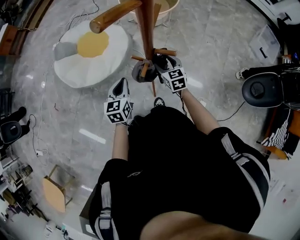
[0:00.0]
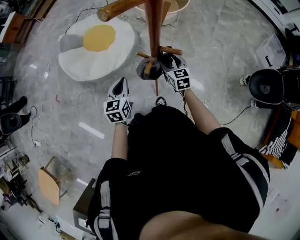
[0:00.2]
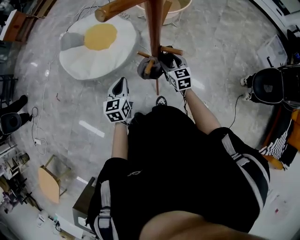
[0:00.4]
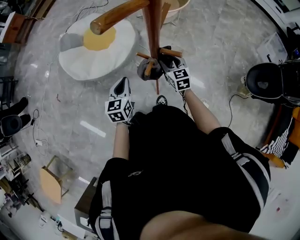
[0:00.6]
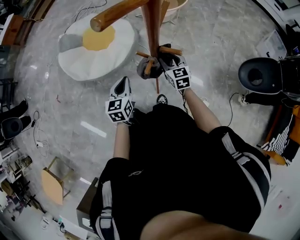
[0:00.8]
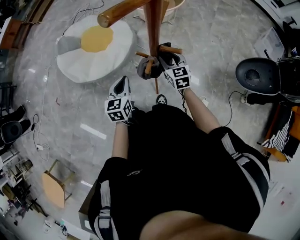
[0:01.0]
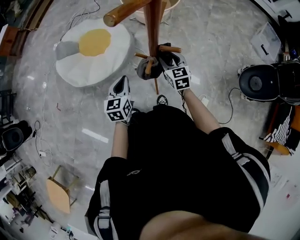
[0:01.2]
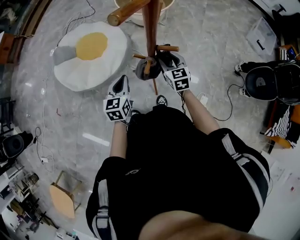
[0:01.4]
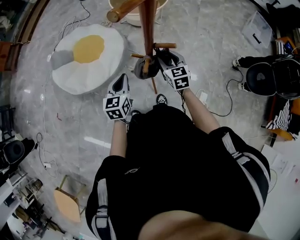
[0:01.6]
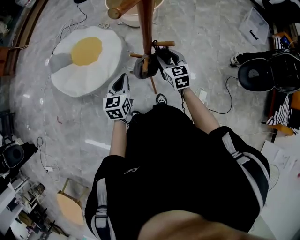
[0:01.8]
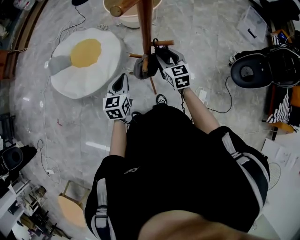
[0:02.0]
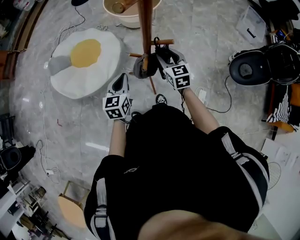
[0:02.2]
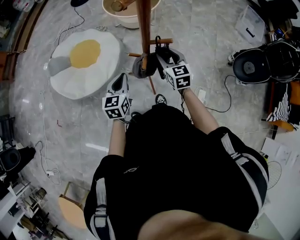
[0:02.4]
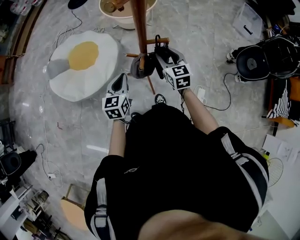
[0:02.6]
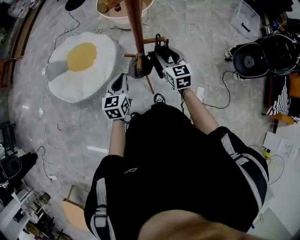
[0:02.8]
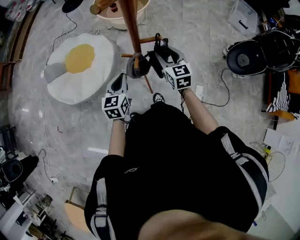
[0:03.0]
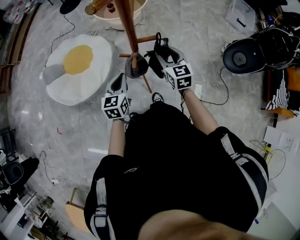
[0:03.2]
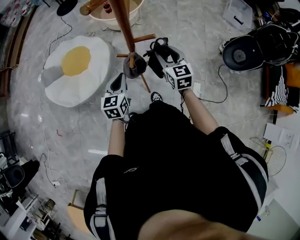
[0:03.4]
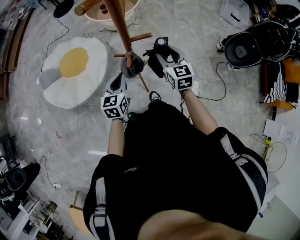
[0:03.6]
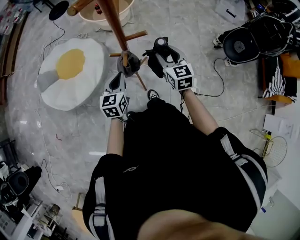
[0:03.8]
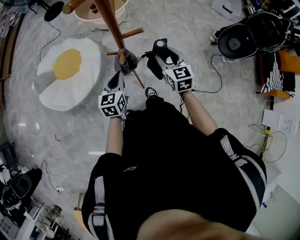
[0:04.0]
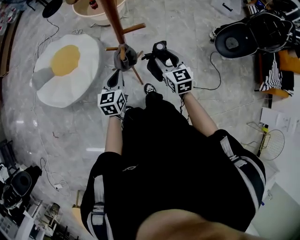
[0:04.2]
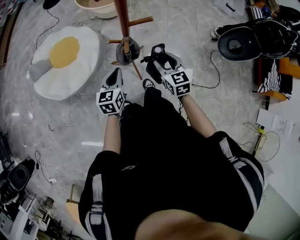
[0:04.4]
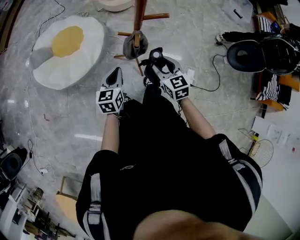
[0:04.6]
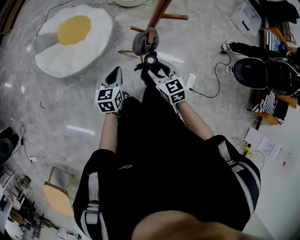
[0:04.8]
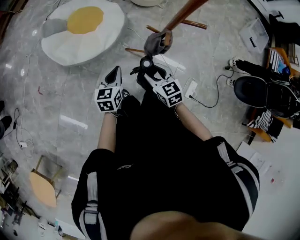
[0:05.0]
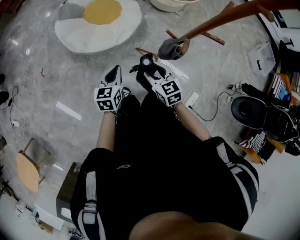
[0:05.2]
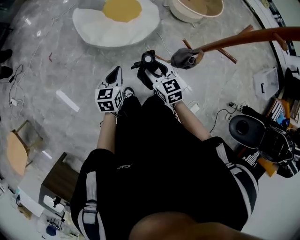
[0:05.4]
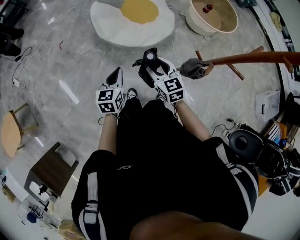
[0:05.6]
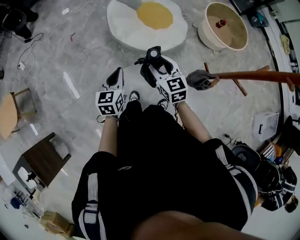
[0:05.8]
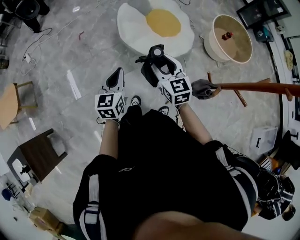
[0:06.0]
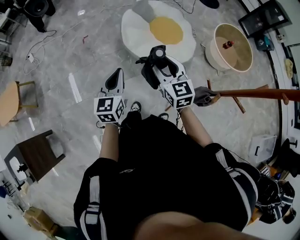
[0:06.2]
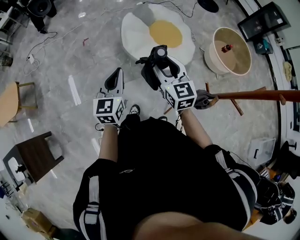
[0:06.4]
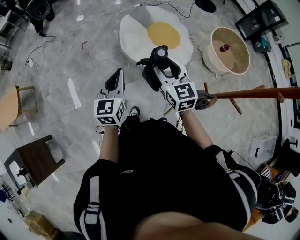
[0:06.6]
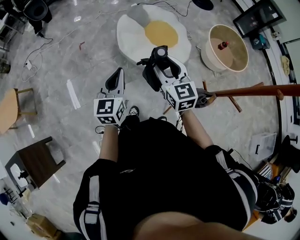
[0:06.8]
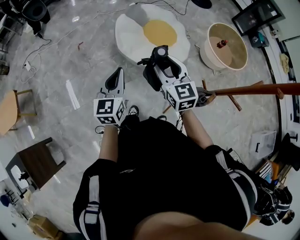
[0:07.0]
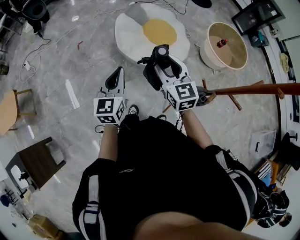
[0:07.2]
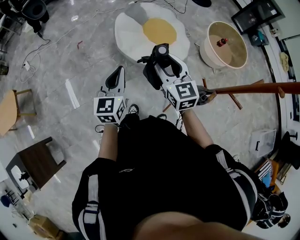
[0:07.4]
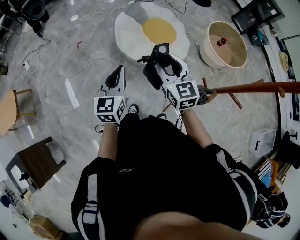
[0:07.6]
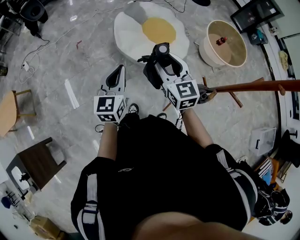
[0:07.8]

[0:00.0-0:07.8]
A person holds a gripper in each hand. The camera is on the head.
0:00.0 to 0:01.6: The right gripper travels upward by approximately 5 cm.
0:01.6 to 0:03.2: The right gripper goes some 5 cm upward.
0:03.2 to 0:04.6: The right gripper goes roughly 15 cm backward, while the left gripper travels backward by about 10 cm.
0:04.6 to 0:06.2: The left gripper changes place by about 30 cm, and turns by about 60 degrees, while the right gripper ends up about 35 cm from where it was, and swivels some 60 degrees.
0:06.2 to 0:07.8: The grippers make only small movements.

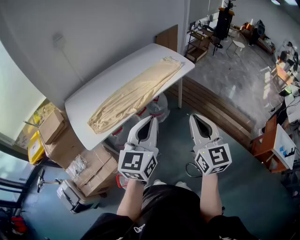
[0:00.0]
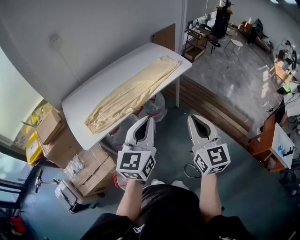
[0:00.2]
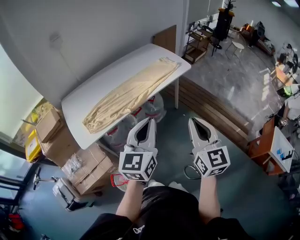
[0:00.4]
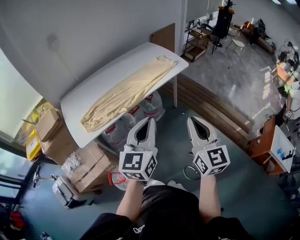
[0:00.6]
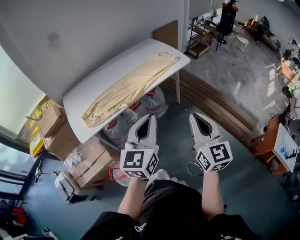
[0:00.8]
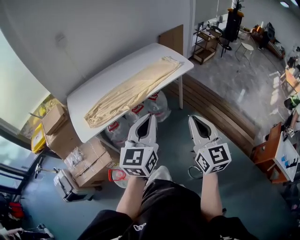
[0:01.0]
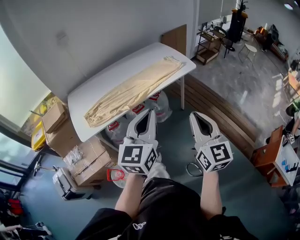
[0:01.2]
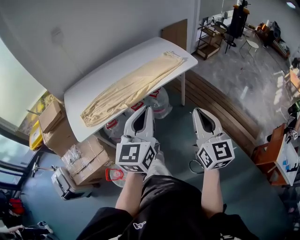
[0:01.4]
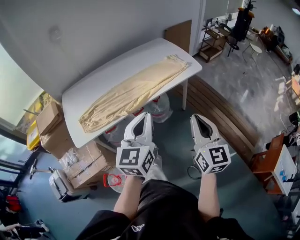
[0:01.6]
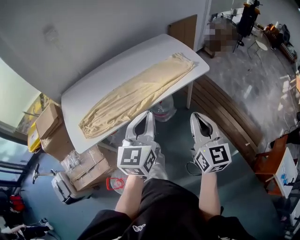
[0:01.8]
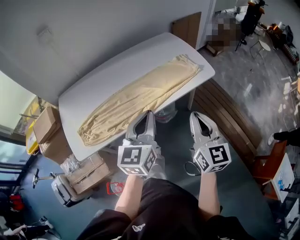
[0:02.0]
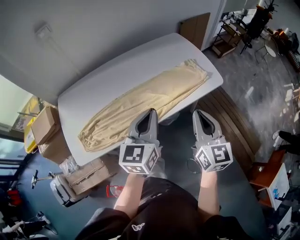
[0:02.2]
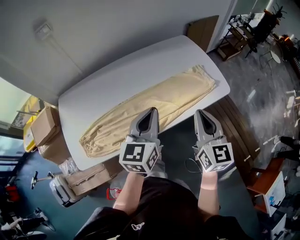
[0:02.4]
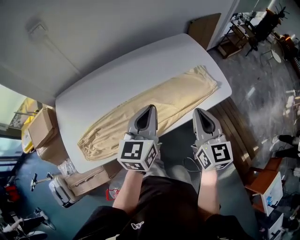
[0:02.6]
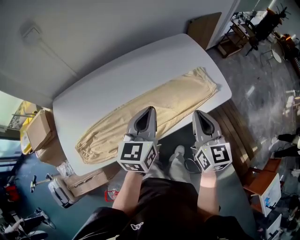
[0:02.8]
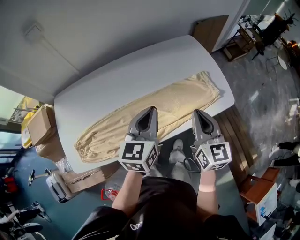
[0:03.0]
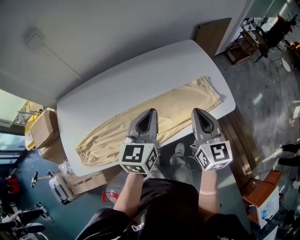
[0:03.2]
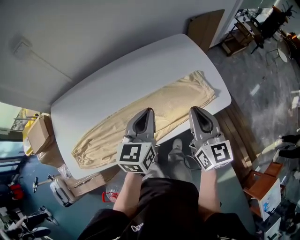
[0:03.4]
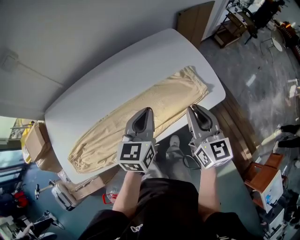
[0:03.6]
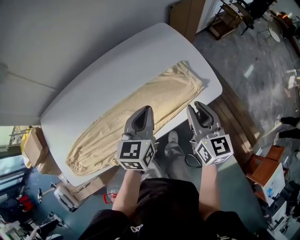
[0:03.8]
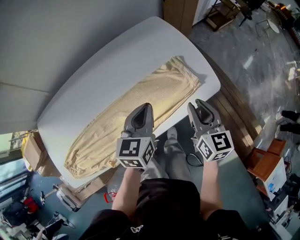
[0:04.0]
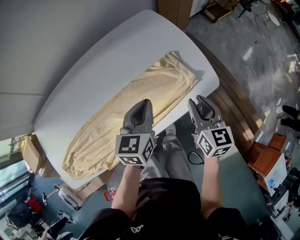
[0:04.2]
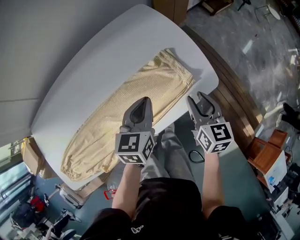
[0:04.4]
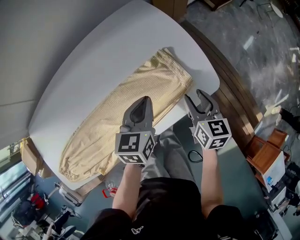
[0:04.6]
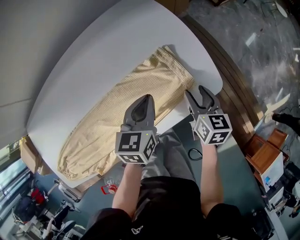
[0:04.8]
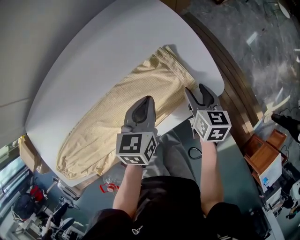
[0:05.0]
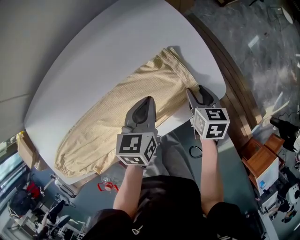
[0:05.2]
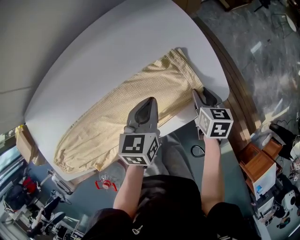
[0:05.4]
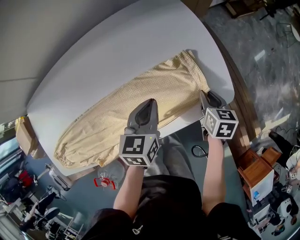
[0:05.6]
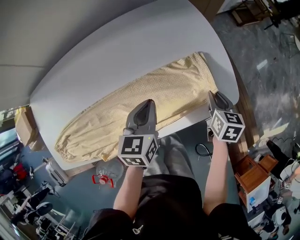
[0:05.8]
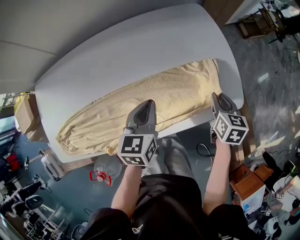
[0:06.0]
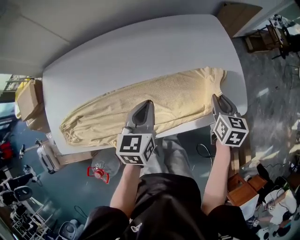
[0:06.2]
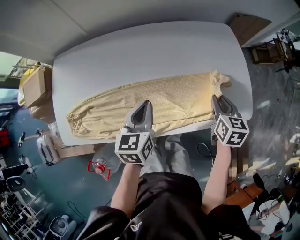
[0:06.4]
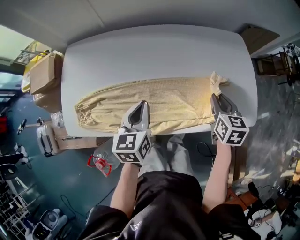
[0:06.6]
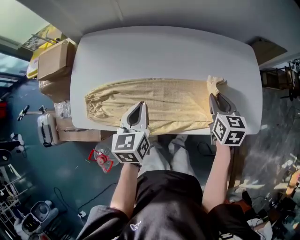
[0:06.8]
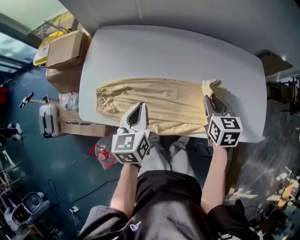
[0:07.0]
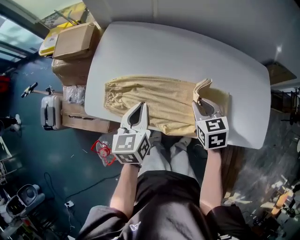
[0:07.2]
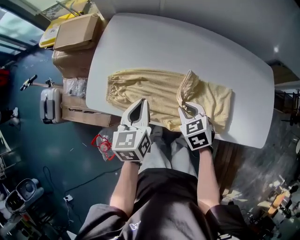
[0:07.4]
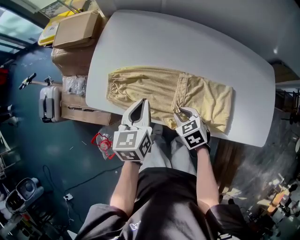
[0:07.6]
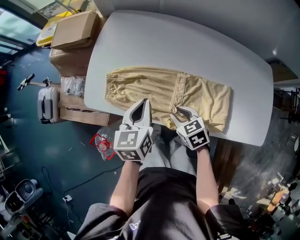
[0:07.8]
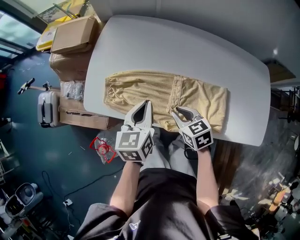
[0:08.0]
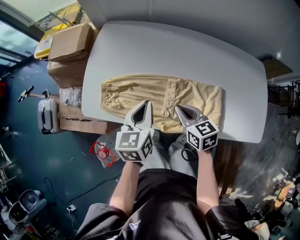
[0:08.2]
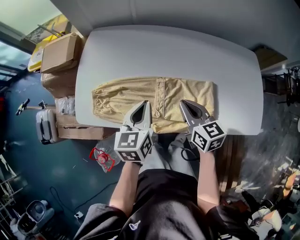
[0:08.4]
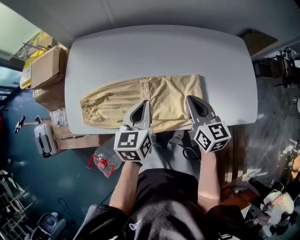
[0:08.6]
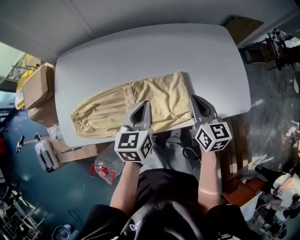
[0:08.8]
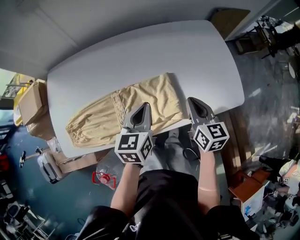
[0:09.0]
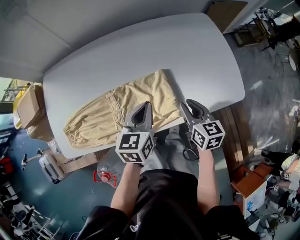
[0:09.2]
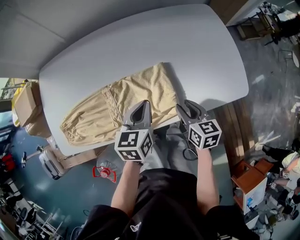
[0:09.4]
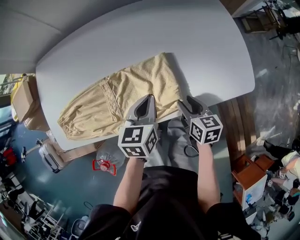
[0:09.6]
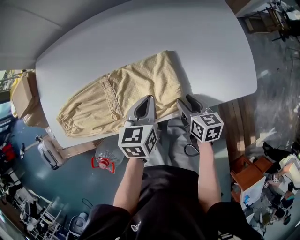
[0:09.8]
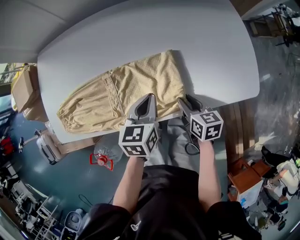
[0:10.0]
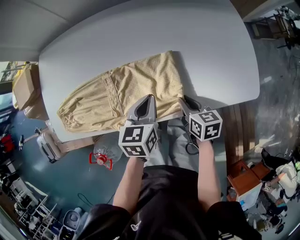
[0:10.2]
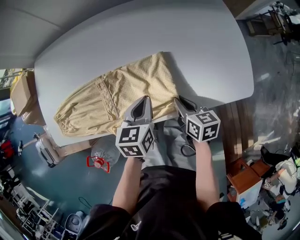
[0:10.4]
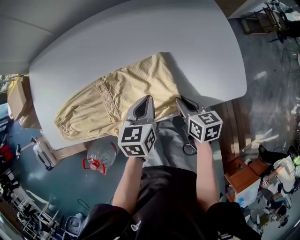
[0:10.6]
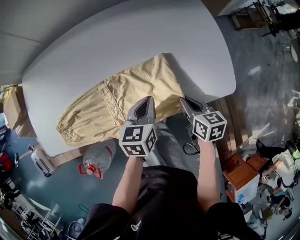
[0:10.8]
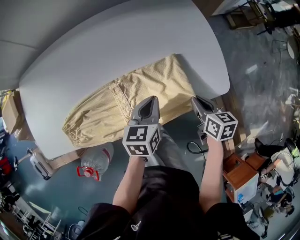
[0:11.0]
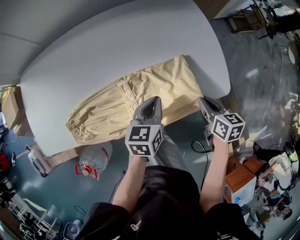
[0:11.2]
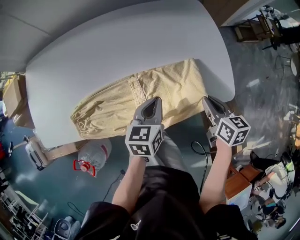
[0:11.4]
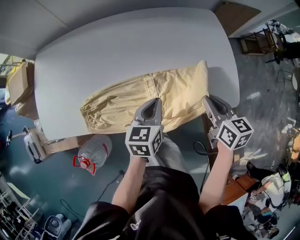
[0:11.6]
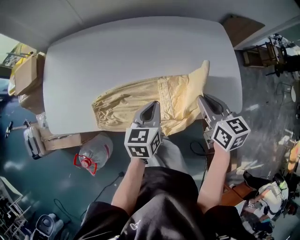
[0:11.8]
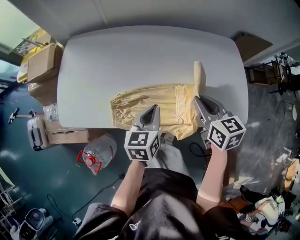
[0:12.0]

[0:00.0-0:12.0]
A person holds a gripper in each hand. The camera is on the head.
0:00.0 to 0:01.6: The left gripper shifts roughly 15 cm forward and to the right. The right gripper is displaced forward, to the right and downward by approximately 15 cm.
0:01.6 to 0:03.0: The two grippers go approximately 40 cm forward.
0:03.0 to 0:04.4: The grippers both shift to the right, downward and forward by approximately 30 cm. The right gripper opens its fingers.
0:04.4 to 0:06.0: The right gripper reaches about 10 cm downward, then returns. The left gripper moves to the left, approximately 10 cm.
0:06.0 to 0:07.6: Both grippers are carried approximately 50 cm. The left gripper rotates approximately 40 degrees, while the right gripper swivels approximately 70 degrees.
0:07.6 to 0:09.0: The left gripper changes place by some 30 cm, and rotates approximately 30 degrees; the right gripper moves approximately 35 cm, angles its fingers upward, by approximately 30 degrees, and closes.
0:09.0 to 0:10.4: The right gripper heads downward, covering about 15 cm, turns by some 30 degrees, and opens, then closes once more; the left gripper goes roughly 10 cm downward and to the right.
0:10.4 to 0:12.0: The left gripper heads upward, covering approximately 10 cm, and goes to the right and returns, approximately 15 cm each way. The right gripper shifts some 20 cm upward, goes to the right and returns, about 25 cm each way, and changes its angle by approximately 30 degrees.

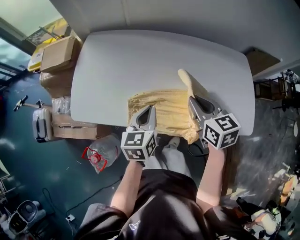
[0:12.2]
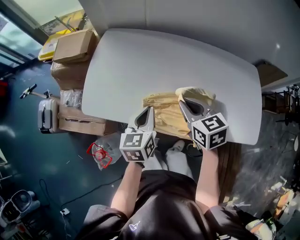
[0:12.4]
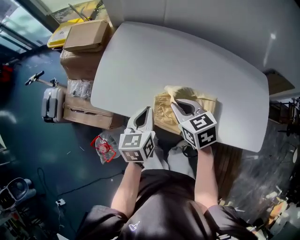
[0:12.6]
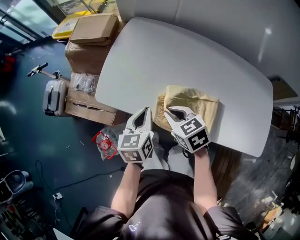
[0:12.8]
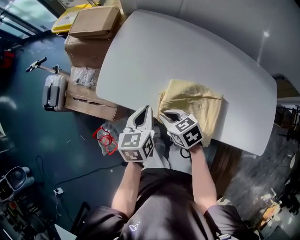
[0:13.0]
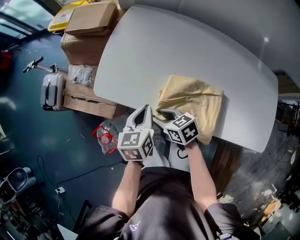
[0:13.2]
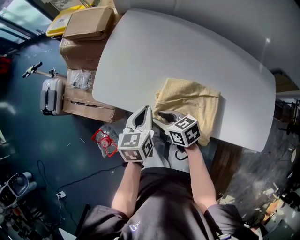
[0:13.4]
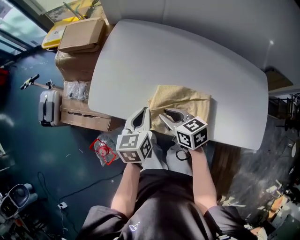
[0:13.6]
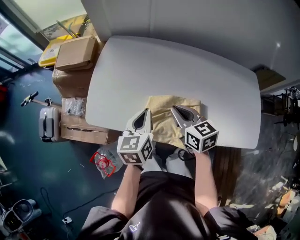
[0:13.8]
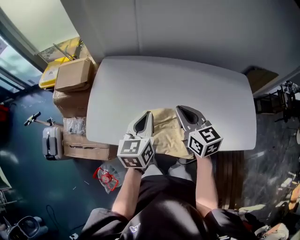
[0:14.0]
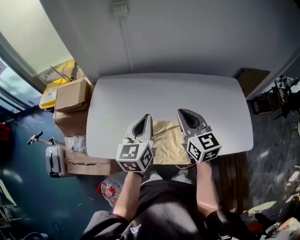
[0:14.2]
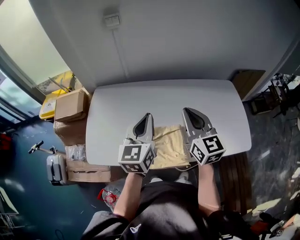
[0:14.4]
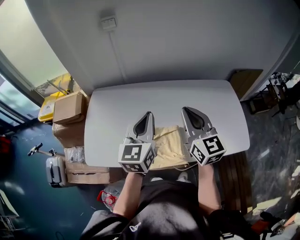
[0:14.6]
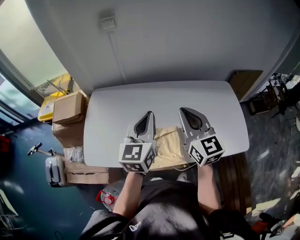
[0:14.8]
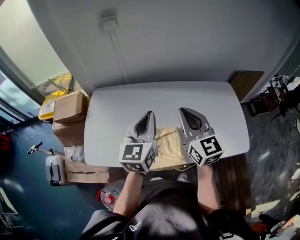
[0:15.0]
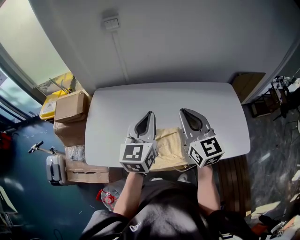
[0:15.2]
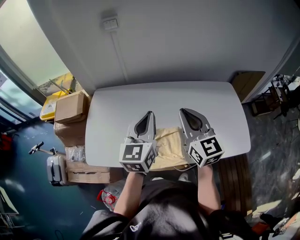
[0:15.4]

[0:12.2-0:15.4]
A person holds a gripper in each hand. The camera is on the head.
0:12.2 to 0:13.8: The right gripper reaches about 20 cm downward, then returns, and opens, then closes once more.
0:13.8 to 0:15.4: Both grippers travel together upward and to the right, roughly 20 cm. The right gripper rotates about 40 degrees. The left gripper changes its angle by roughly 30 degrees.
